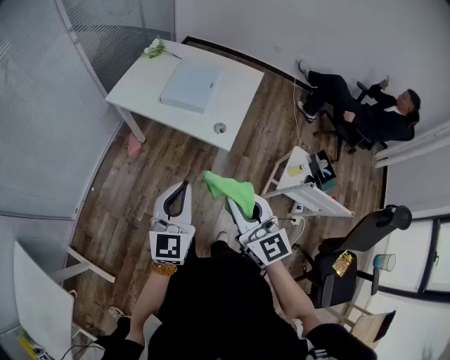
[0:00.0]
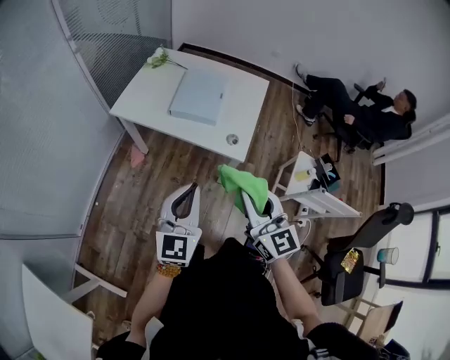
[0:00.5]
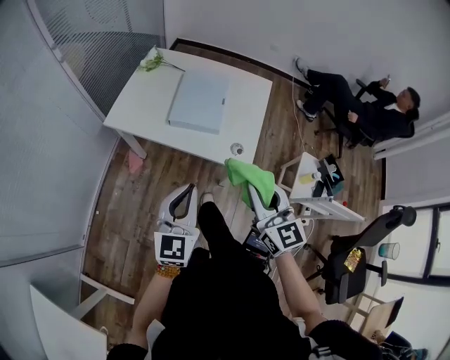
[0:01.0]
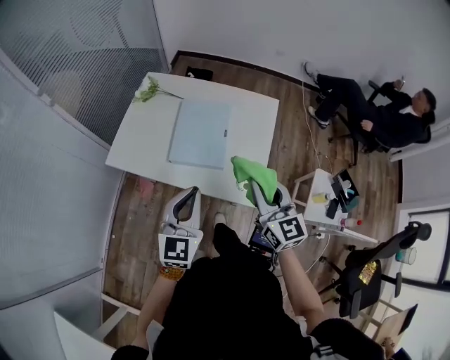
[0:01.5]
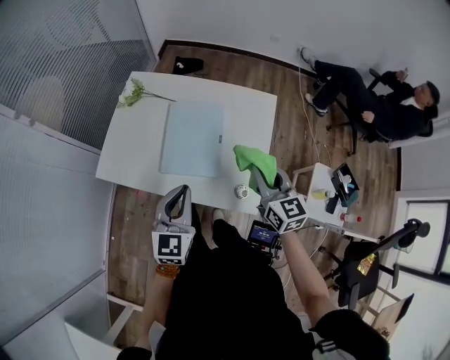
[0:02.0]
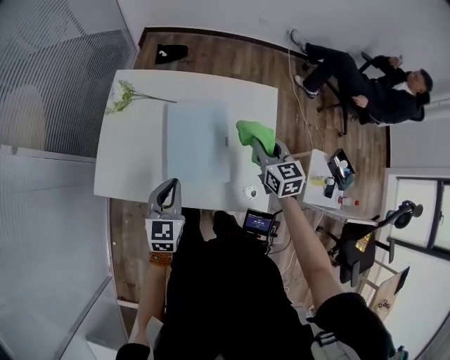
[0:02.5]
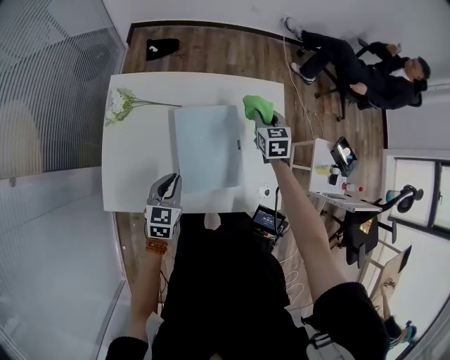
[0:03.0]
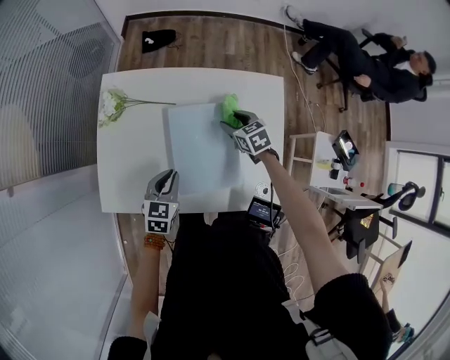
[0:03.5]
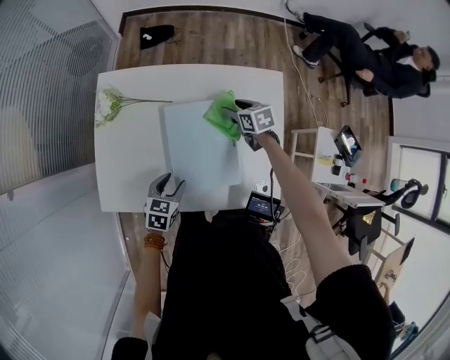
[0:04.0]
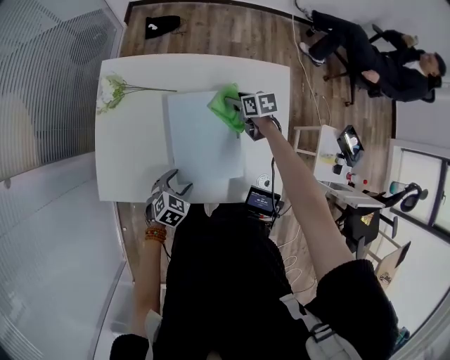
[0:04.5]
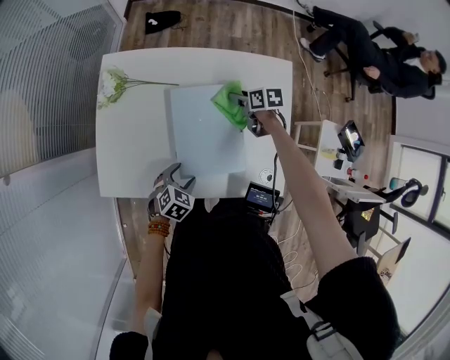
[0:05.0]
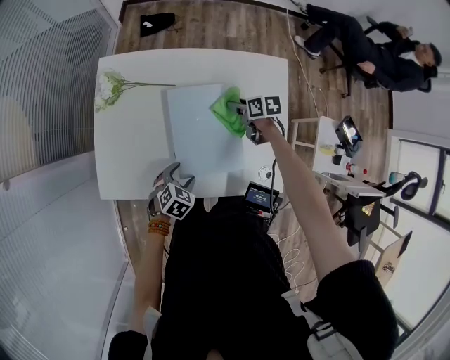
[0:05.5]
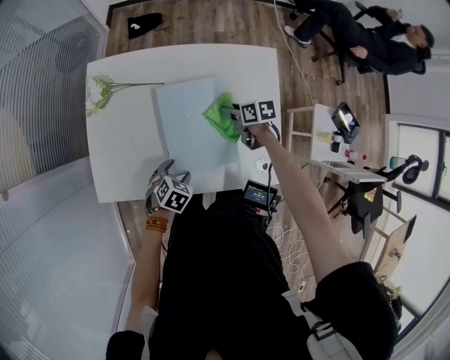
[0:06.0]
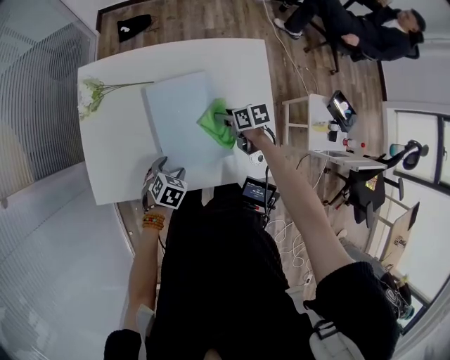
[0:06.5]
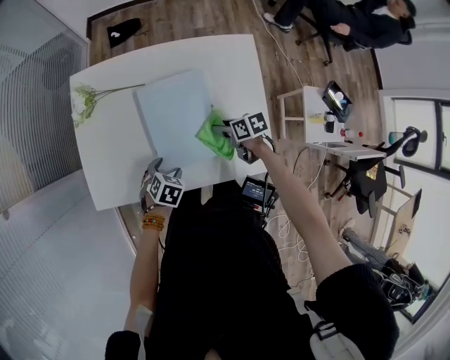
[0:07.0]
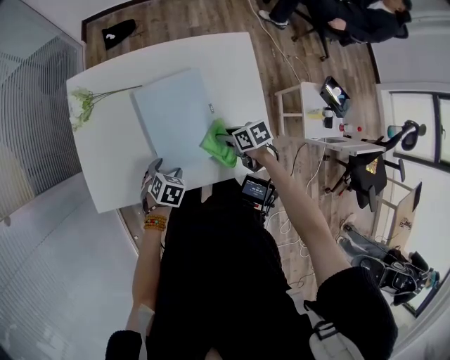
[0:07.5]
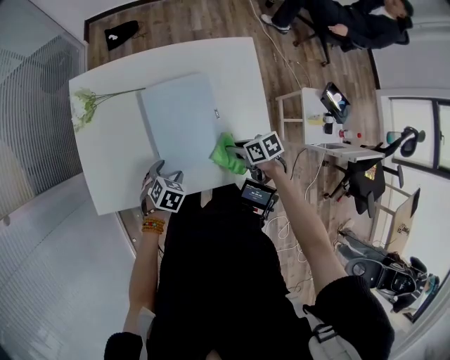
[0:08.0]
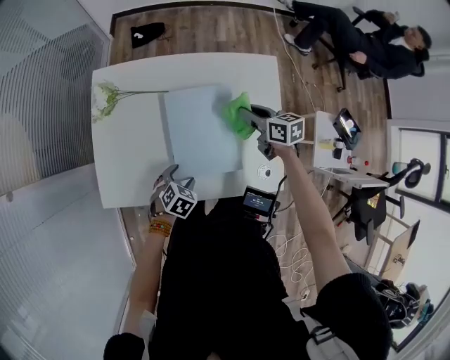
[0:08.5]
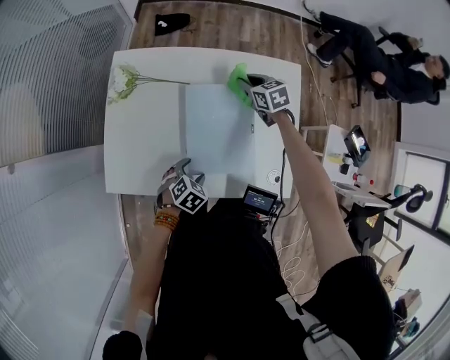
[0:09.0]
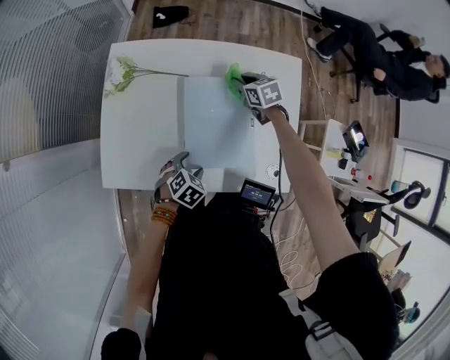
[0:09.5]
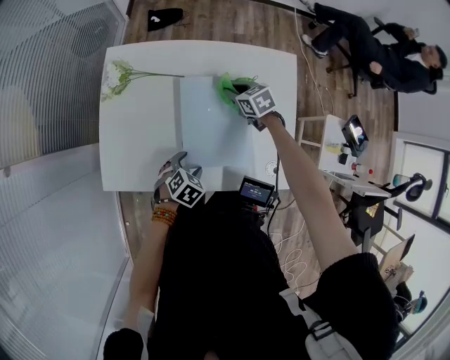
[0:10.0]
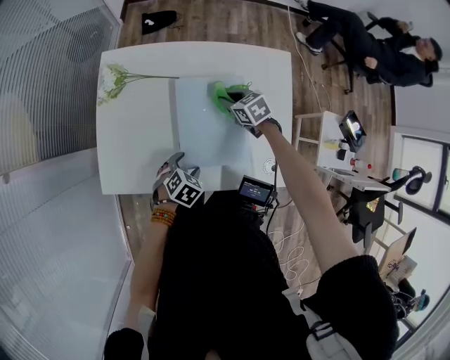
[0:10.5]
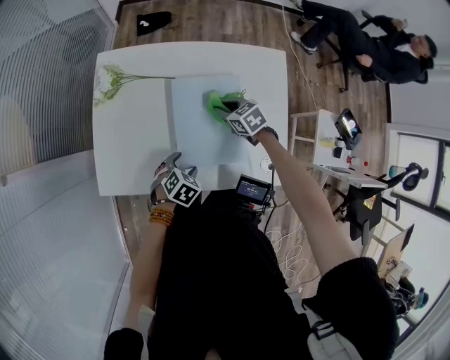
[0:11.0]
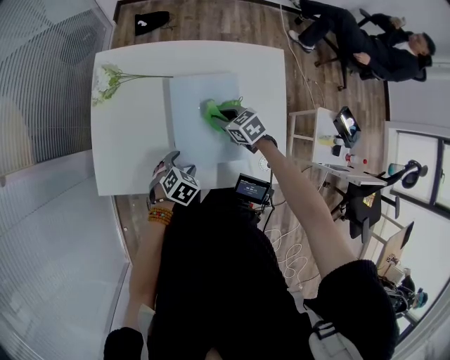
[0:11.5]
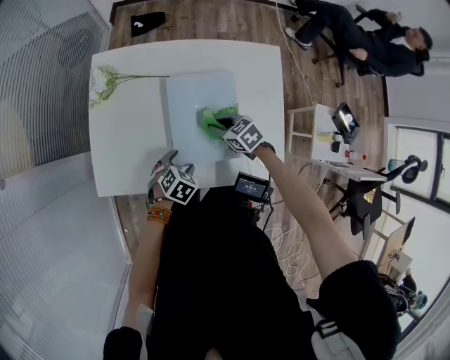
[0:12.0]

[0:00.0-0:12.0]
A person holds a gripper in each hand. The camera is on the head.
0:00.0 to 0:02.0: The two grippers go about 40 cm forward. The right gripper swivels about 30 degrees.
0:02.0 to 0:04.0: The right gripper goes roughly 35 cm forward and downward, tips its fingers downward by roughly 30 degrees, and opens. Meanwhile the left gripper moves downward, to the left and forward, about 30 cm, tips its fingers downward by some 30 degrees, and opens.
0:04.0 to 0:06.0: The left gripper shifts by approximately 5 cm, and turns by approximately 30 degrees. The right gripper travels backward by roughly 10 cm, and changes its angle by roughly 20 degrees.
0:06.0 to 0:08.0: The right gripper moves backward, about 15 cm, and closes.
0:08.0 to 0:10.0: The right gripper moves forward, roughly 25 cm, and turns by roughly 40 degrees.
0:10.0 to 0:12.0: The right gripper shifts approximately 15 cm backward.

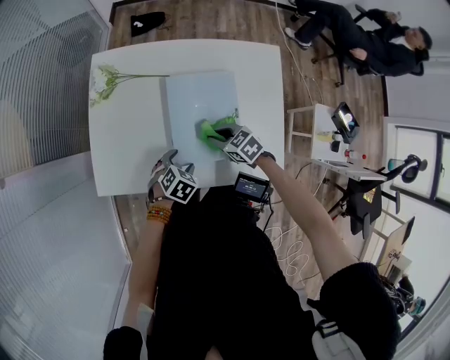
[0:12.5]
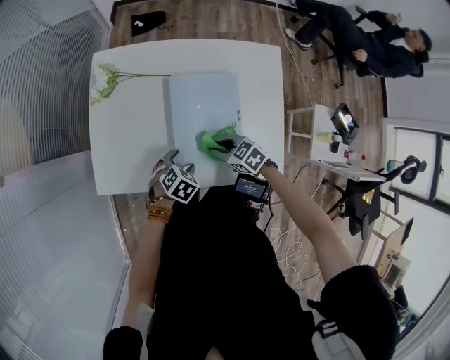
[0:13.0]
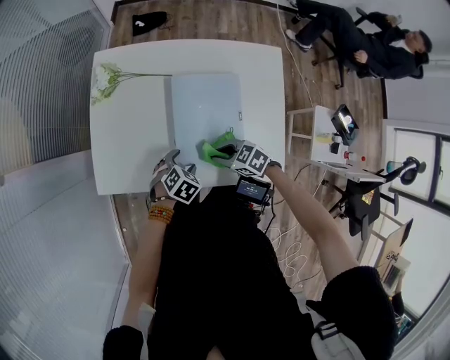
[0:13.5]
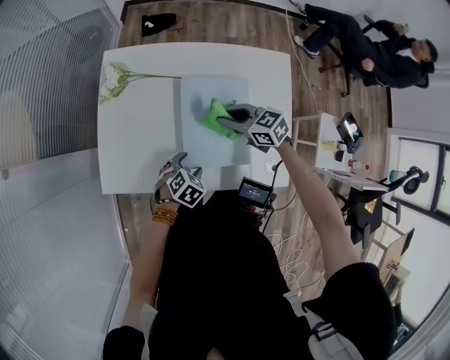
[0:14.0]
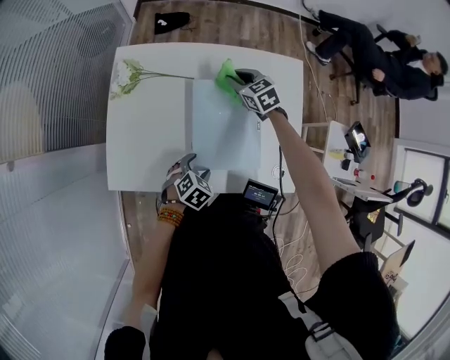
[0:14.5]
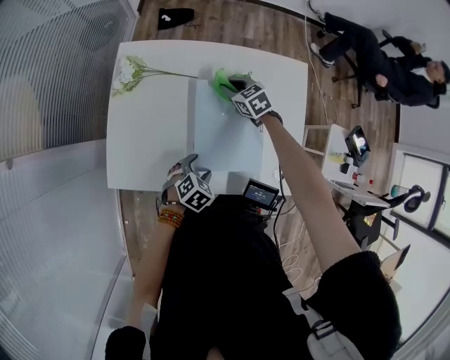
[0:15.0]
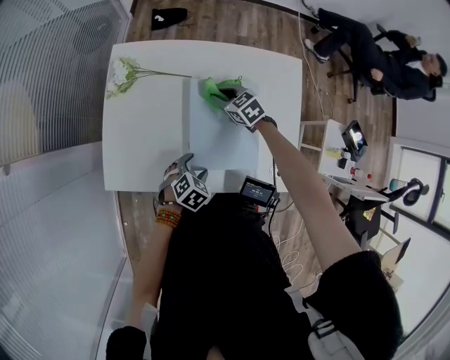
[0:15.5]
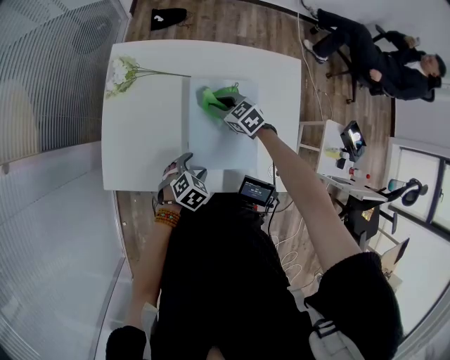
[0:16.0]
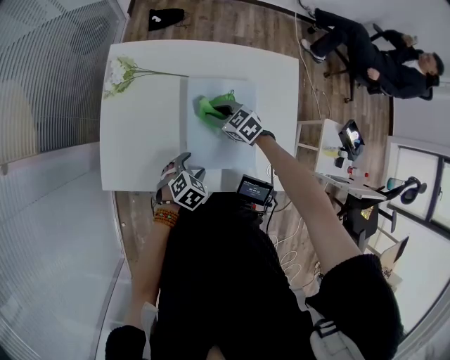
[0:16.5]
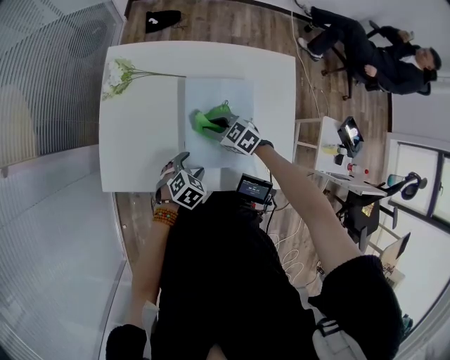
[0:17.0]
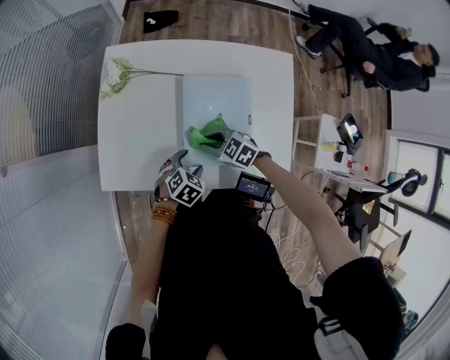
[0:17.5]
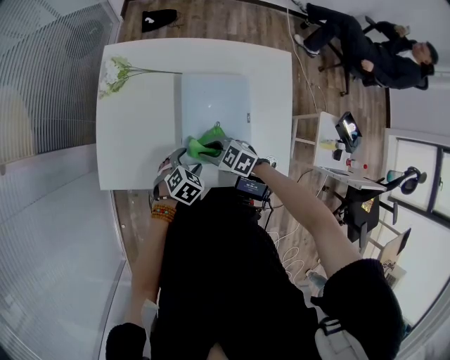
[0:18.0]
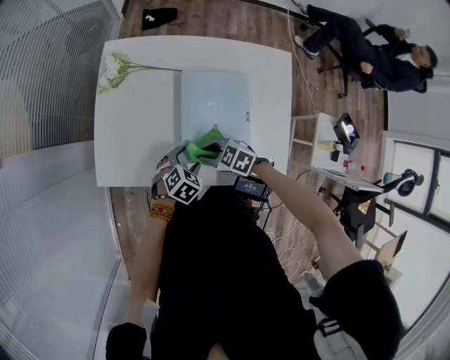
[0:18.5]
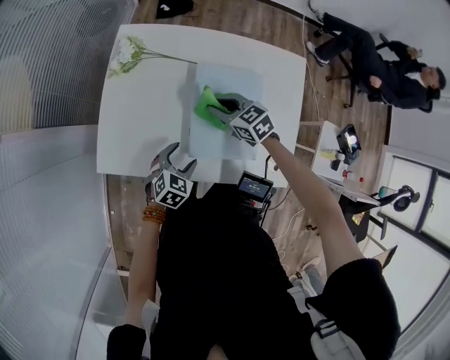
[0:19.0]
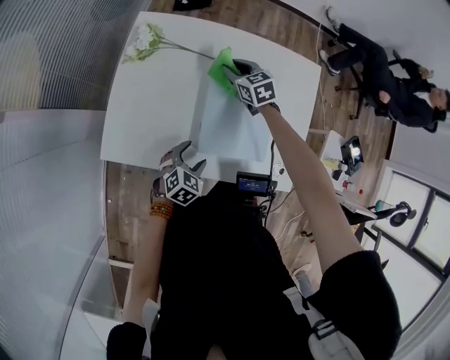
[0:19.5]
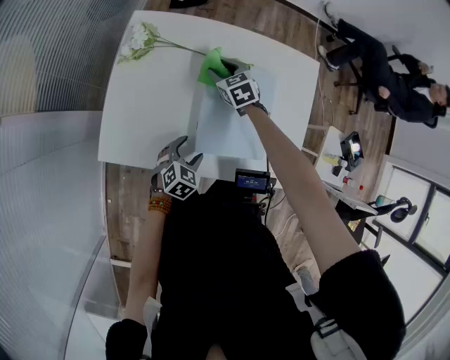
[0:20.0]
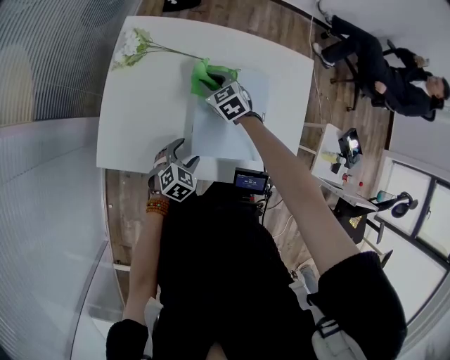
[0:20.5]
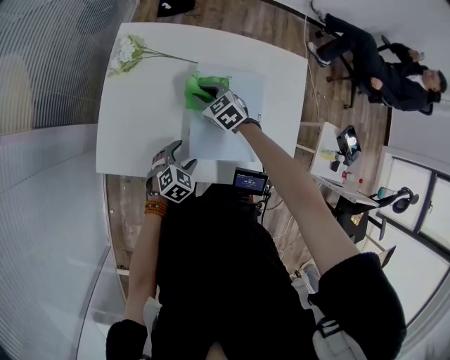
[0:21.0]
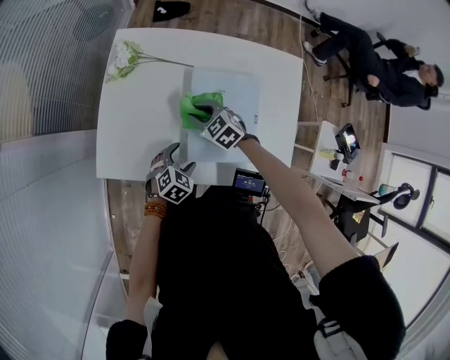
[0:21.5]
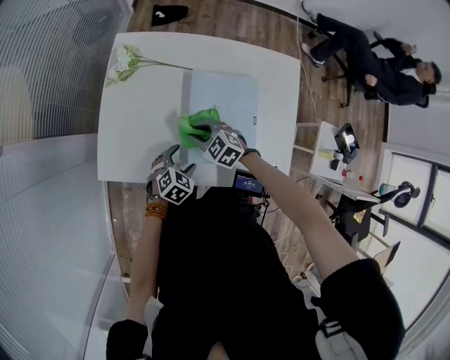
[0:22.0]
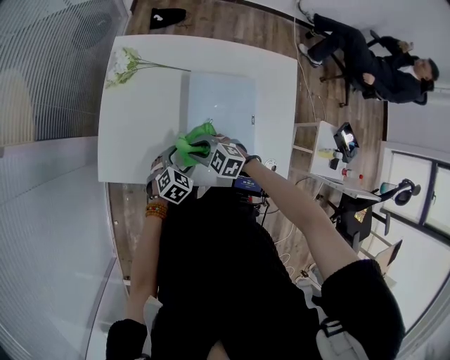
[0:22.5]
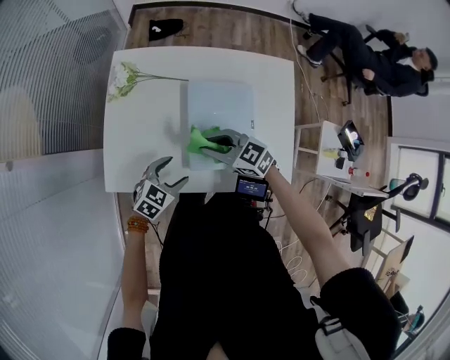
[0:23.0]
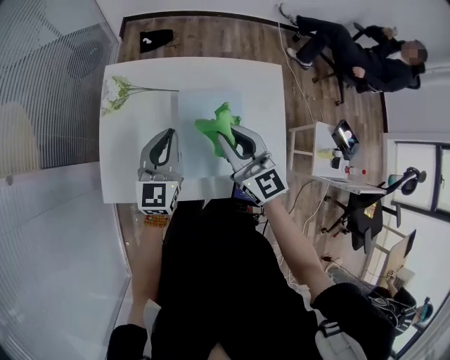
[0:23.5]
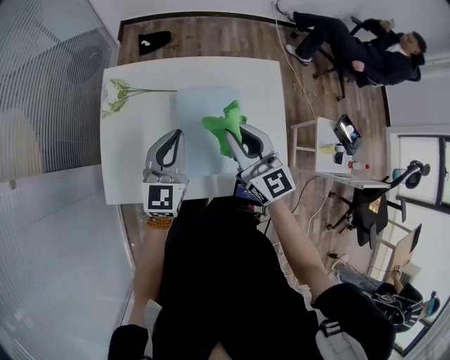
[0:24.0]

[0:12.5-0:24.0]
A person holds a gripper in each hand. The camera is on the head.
0:12.5 to 0:14.5: The right gripper ends up about 25 cm from where it was, and swivels about 20 degrees.
0:14.5 to 0:16.5: The right gripper heads backward and to the left, covering some 15 cm.
0:16.5 to 0:18.5: The right gripper moves approximately 15 cm.
0:18.5 to 0:20.0: The right gripper ends up approximately 25 cm from where it was, swivels about 40 degrees, and opens its fingers.
0:20.0 to 0:22.0: The right gripper goes about 20 cm backward, changes its angle by roughly 30 degrees, and closes its fingers.
0:22.0 to 0:24.0: The two grippers go about 25 cm upward. The left gripper angles its fingers upward, by approximately 50 degrees, and closes its fingers; the right gripper tilts its fingers some 40 degrees upward.

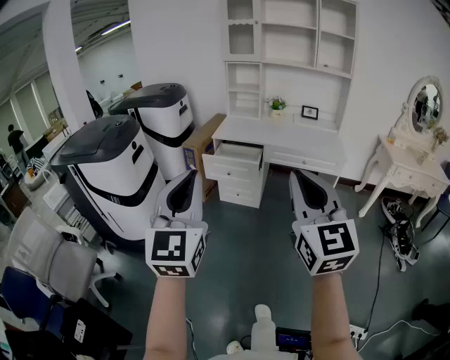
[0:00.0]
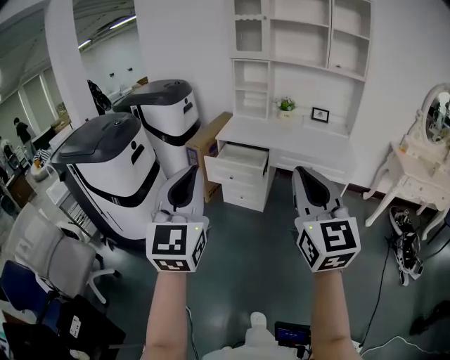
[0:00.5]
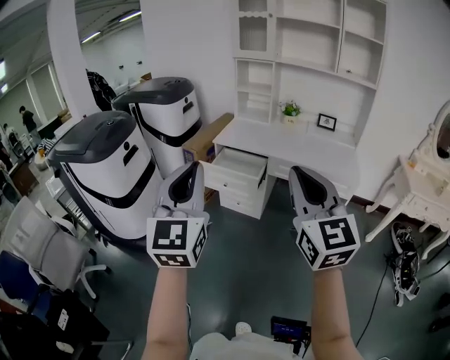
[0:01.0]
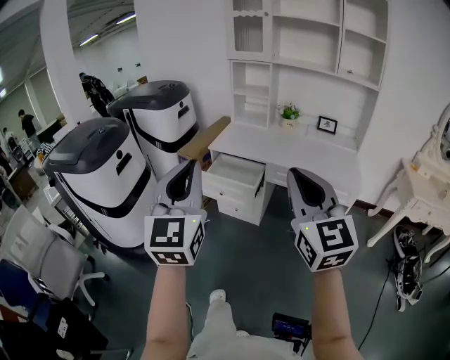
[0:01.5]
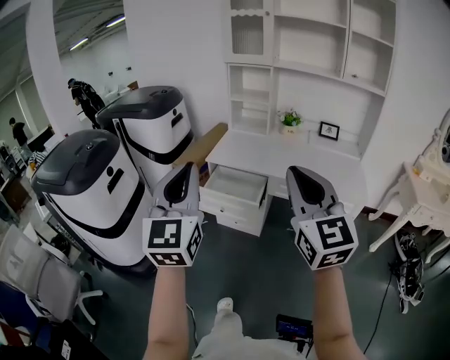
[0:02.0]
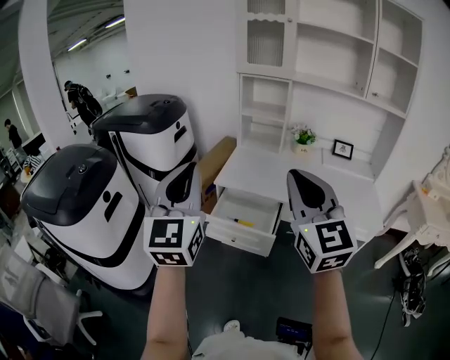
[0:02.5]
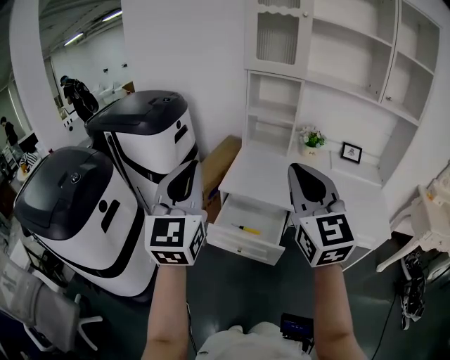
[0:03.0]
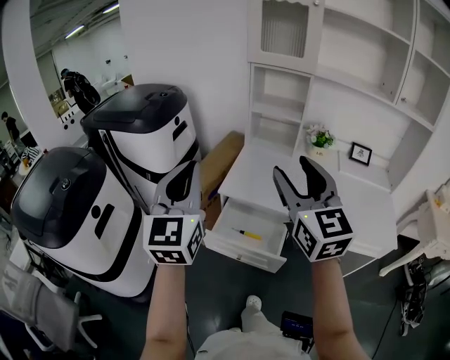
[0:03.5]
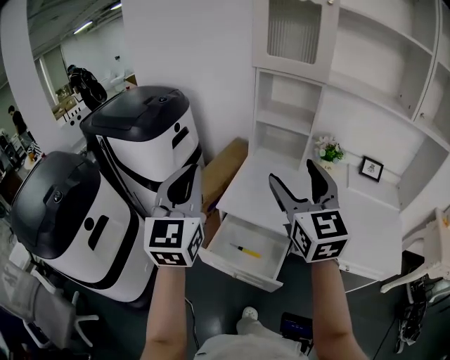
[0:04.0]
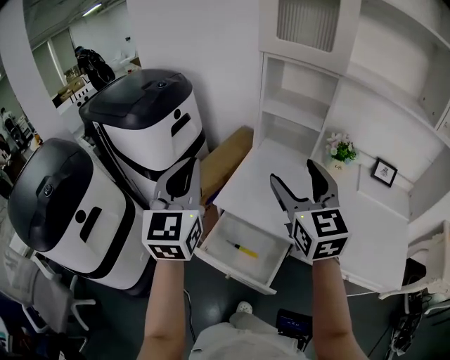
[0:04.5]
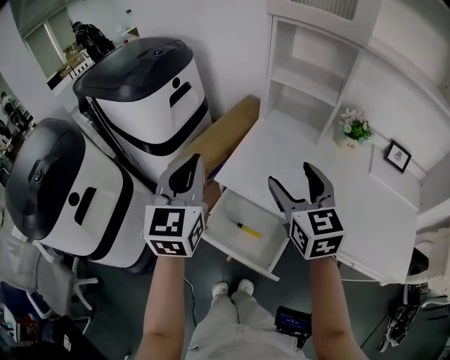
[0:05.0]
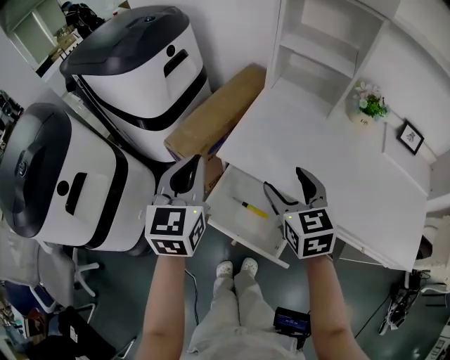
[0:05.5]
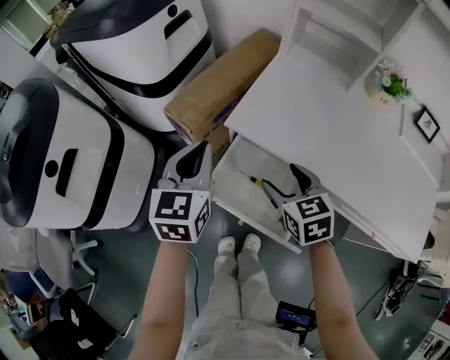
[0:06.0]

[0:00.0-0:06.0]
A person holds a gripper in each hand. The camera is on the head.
0:00.0 to 0:02.0: Both grippers move forward, approximately 35 cm.
0:02.0 to 0:04.0: Both grippers are carried forward, approximately 40 cm. The right gripper opens its fingers.
0:04.0 to 0:06.0: The two grippers go about 35 cm downward. The left gripper rotates about 30 degrees. Meanwhile the right gripper tips its fingers downward by some 40 degrees.
